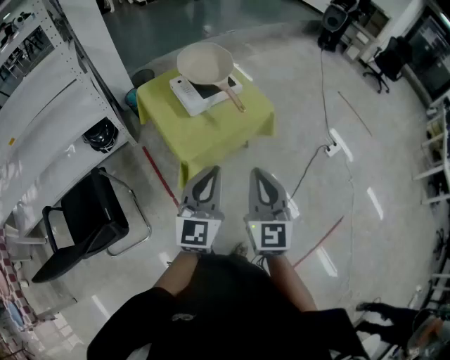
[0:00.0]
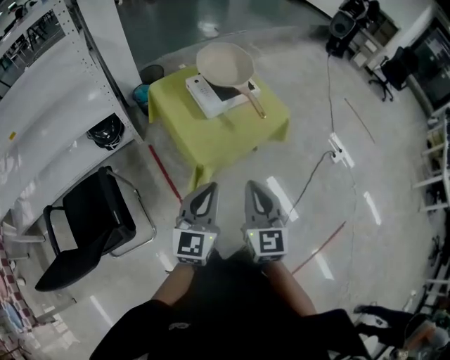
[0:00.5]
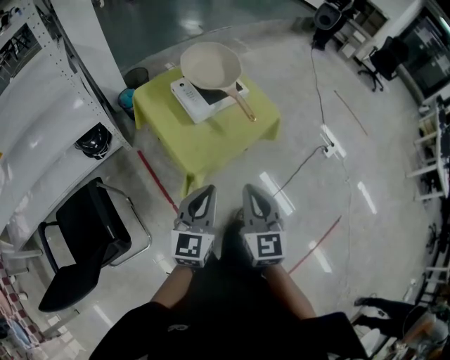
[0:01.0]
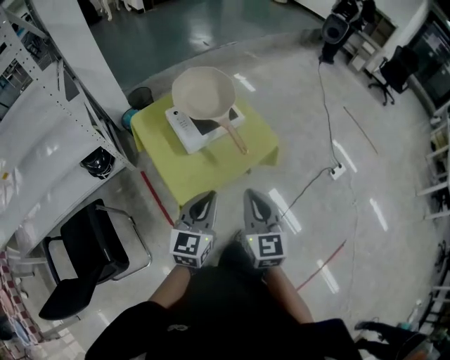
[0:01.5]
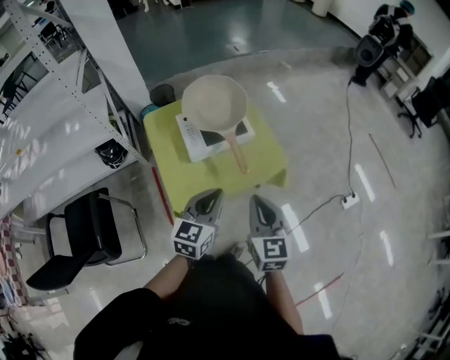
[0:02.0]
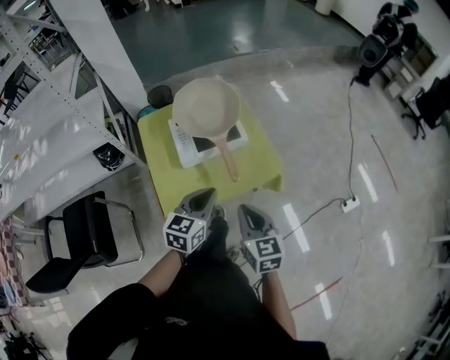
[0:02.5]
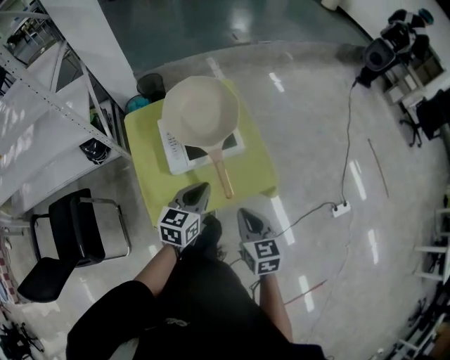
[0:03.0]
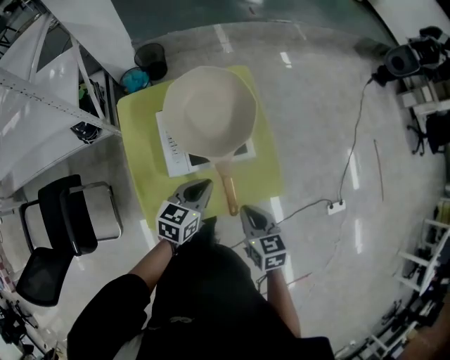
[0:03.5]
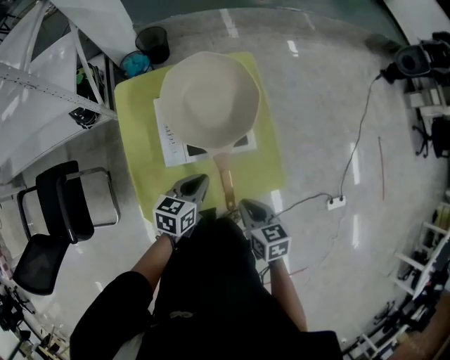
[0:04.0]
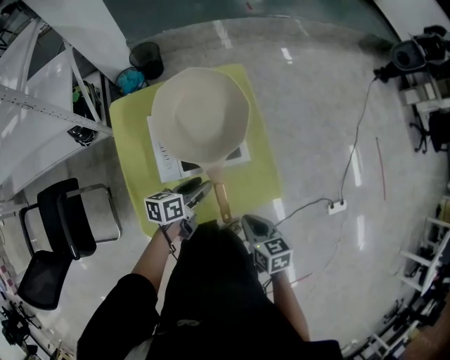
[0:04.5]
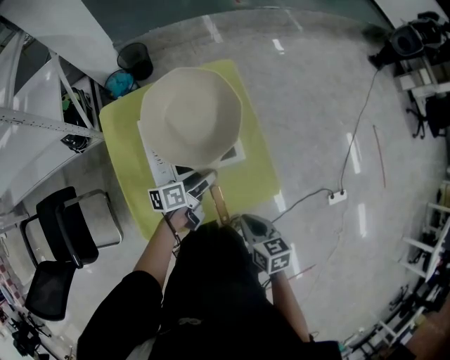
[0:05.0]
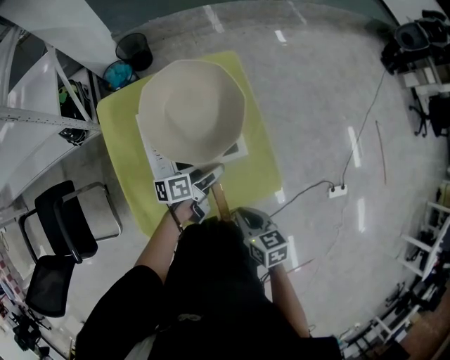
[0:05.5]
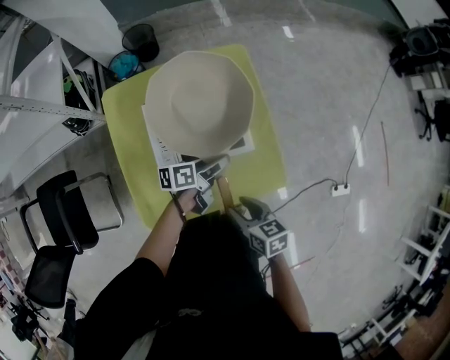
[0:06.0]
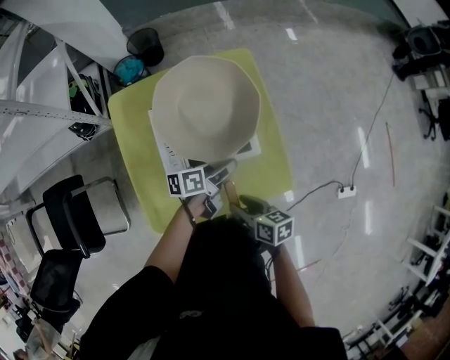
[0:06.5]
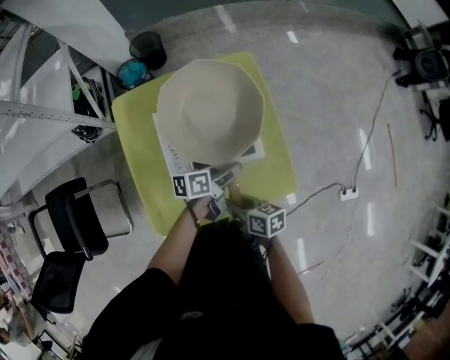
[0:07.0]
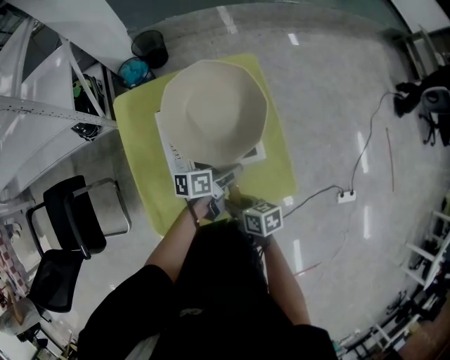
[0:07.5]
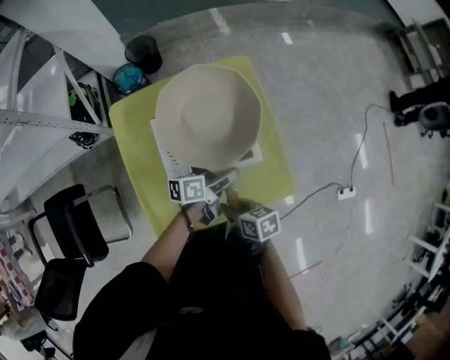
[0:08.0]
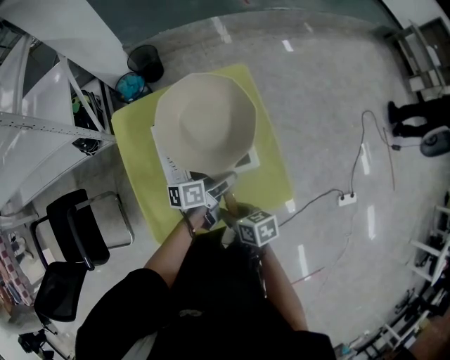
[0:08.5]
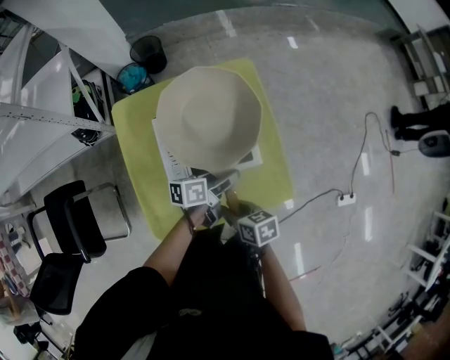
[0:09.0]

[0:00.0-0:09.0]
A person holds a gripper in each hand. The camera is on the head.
0.0 to 2.0 s: Both grippers move forward, approximately 25 cm. The right gripper turns by about 20 degrees.
2.0 to 4.5 s: The left gripper is displaced forward and downward by roughly 35 cm, rolls counterclockwise, seen from behind, by roughly 50 degrees, and opens its fingers, while the right gripper is displaced downward and forward by roughly 25 cm, and swivels roughly 40 degrees.
4.5 to 7.0 s: The right gripper moves to the left and downward, roughly 10 cm, changes its angle by roughly 20 degrees, and opens up, while the left gripper heads forward and to the right, covering some 10 cm.
7.0 to 9.0 s: The grippers make only small movements.

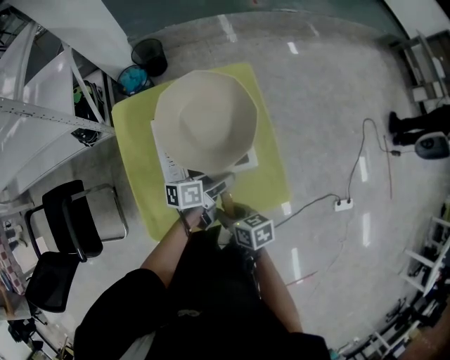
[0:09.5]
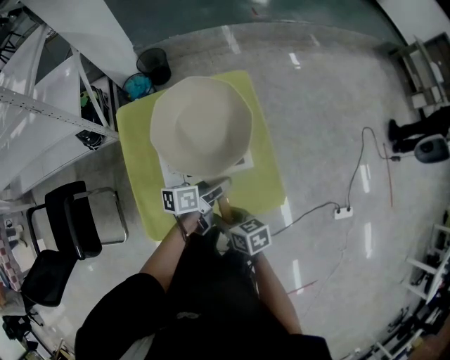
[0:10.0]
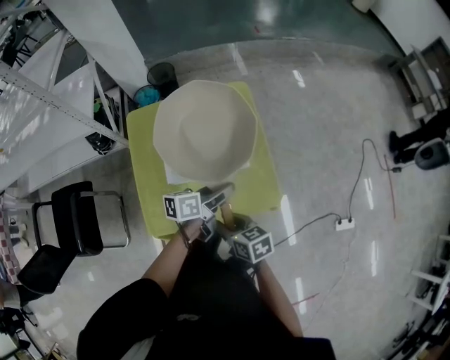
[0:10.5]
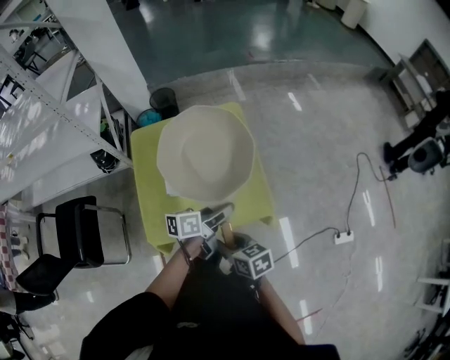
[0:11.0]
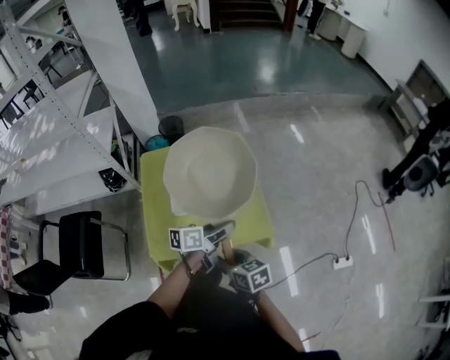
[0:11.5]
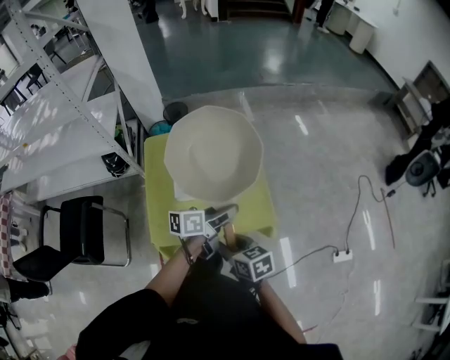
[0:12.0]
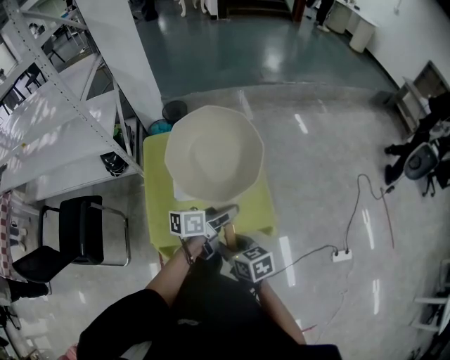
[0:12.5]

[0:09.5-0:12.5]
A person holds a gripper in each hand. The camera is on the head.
9.5 to 11.0 s: The grippers both shift backward and upward by about 15 cm.
11.0 to 12.5 s: The left gripper moves upward, approximately 5 cm.

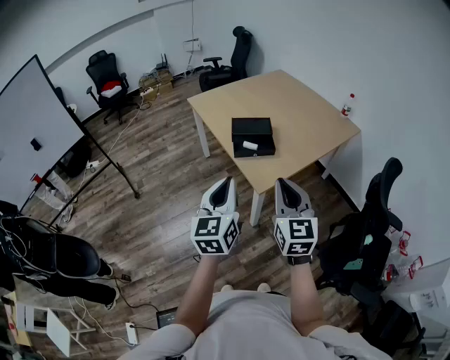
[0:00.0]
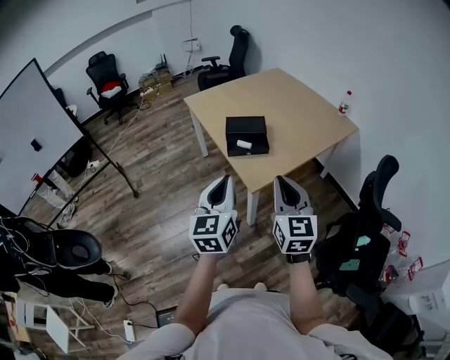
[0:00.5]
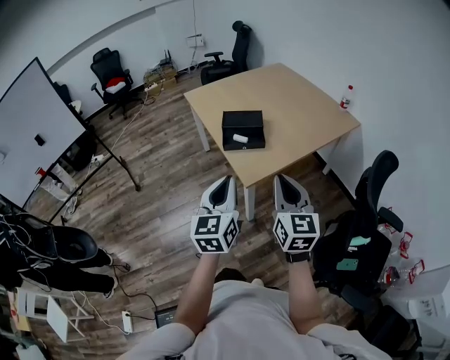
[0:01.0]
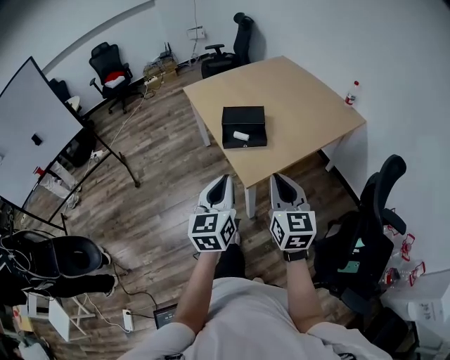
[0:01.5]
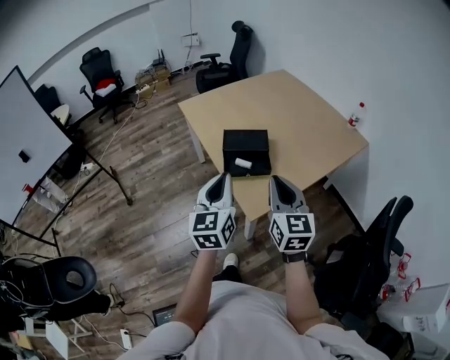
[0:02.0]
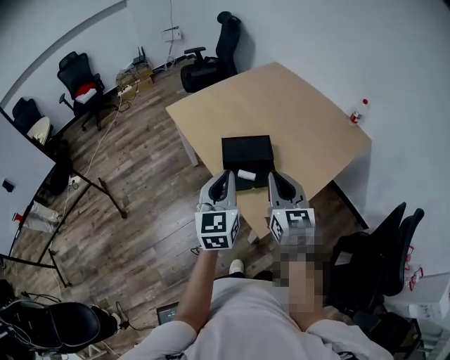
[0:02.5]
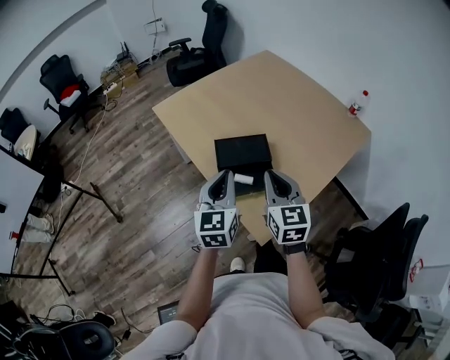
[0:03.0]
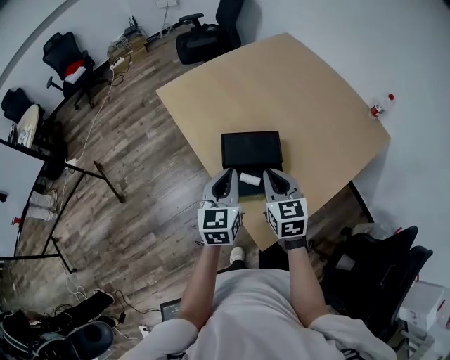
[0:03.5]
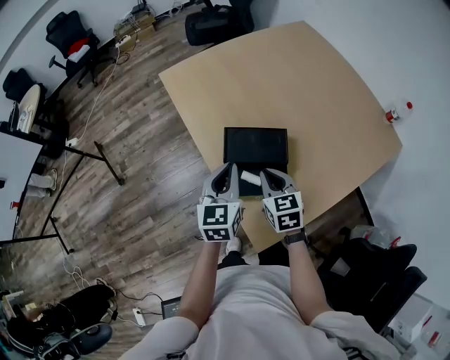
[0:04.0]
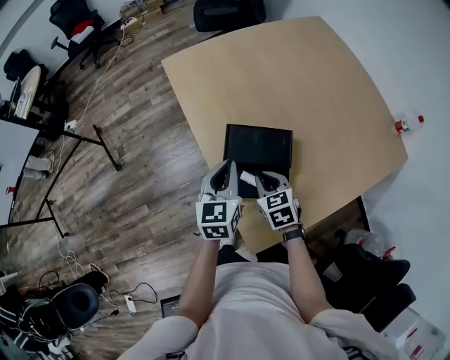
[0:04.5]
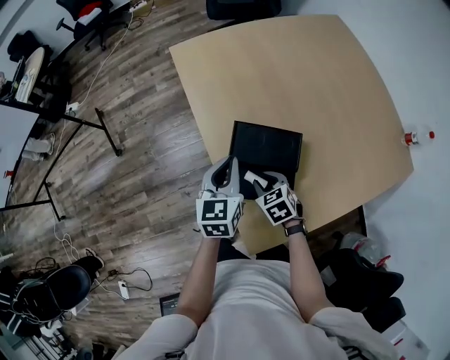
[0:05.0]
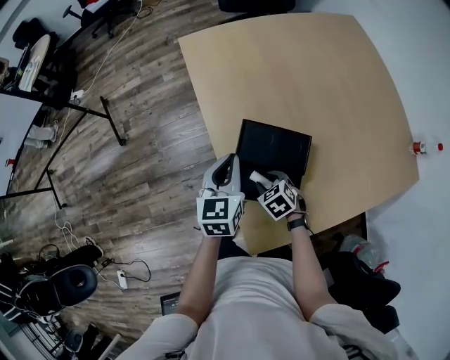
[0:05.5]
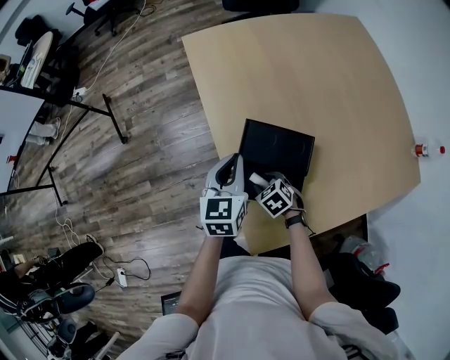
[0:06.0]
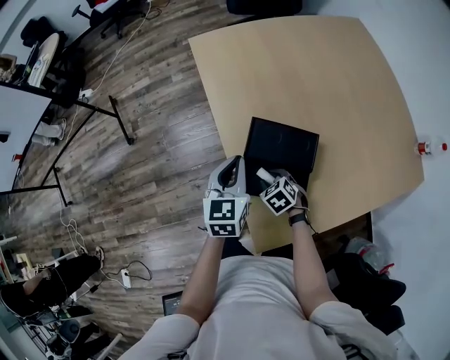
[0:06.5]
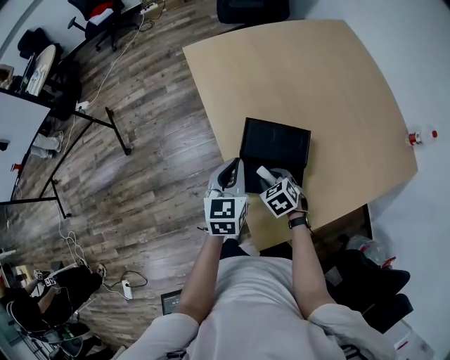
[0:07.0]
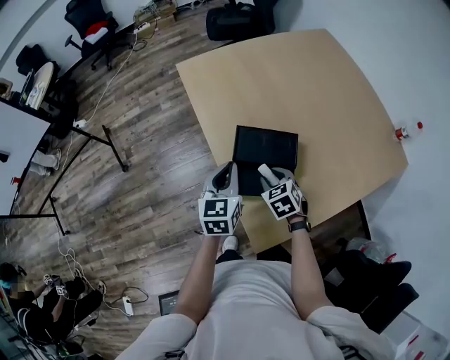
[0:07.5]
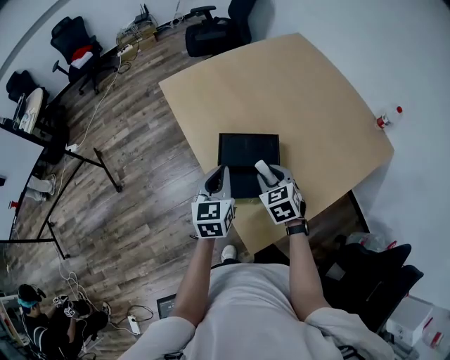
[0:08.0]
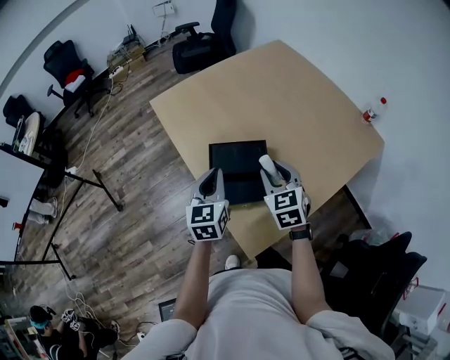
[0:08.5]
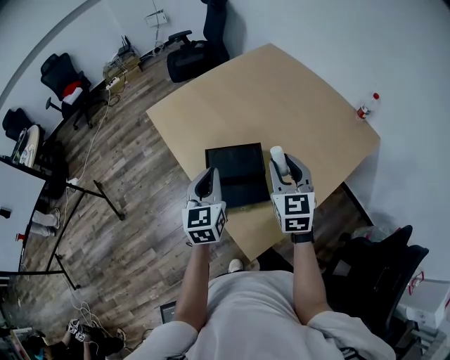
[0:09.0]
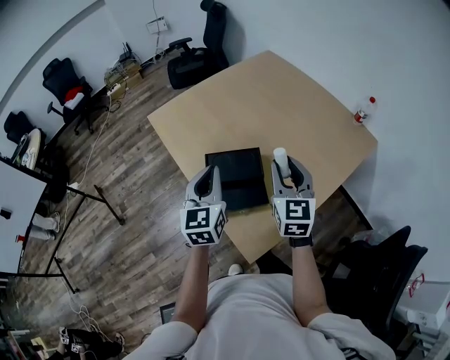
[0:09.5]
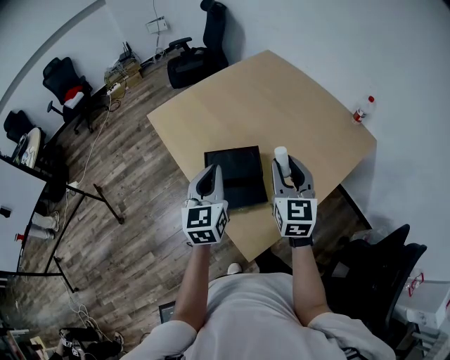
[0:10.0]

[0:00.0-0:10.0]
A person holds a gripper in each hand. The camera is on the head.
0.0 to 2.0 s: Both grippers travel together forward, roughly 20 cm.
2.0 to 4.0 s: Both grippers move forward and downward, about 35 cm. The right gripper turns by about 30 degrees.
4.0 to 6.0 s: The right gripper shifts approximately 20 cm downward, rotates approximately 50 degrees, and opens its fingers; the left gripper changes place by approximately 10 cm.
6.0 to 8.0 s: The left gripper ends up roughly 10 cm from where it was; the right gripper goes approximately 20 cm upward, and turns by some 40 degrees.
8.0 to 10.0 s: The right gripper moves upward and to the right, roughly 20 cm, and angles its fingers upward, by roughly 30 degrees. Meanwhile the left gripper is displaced upward by roughly 10 cm.

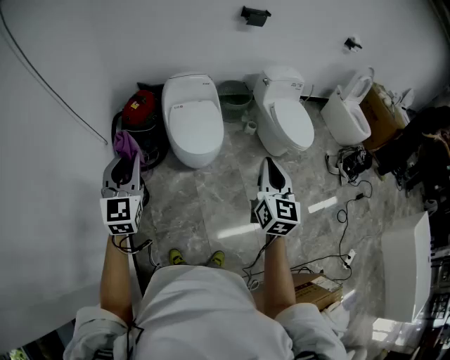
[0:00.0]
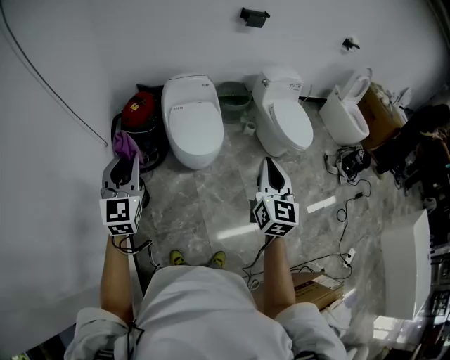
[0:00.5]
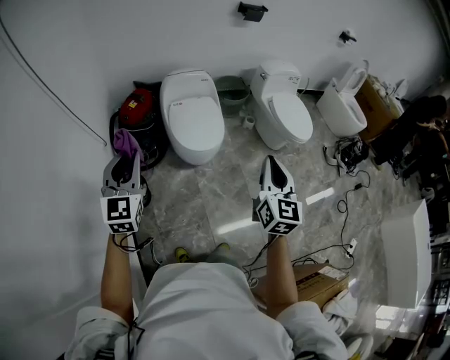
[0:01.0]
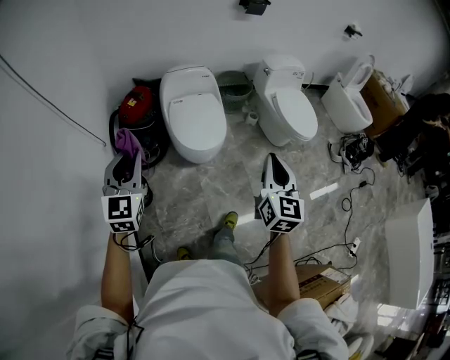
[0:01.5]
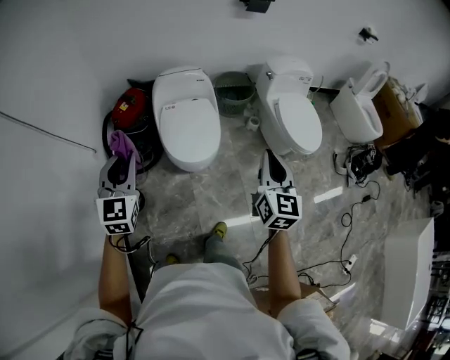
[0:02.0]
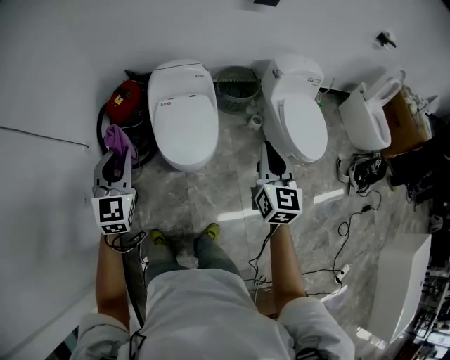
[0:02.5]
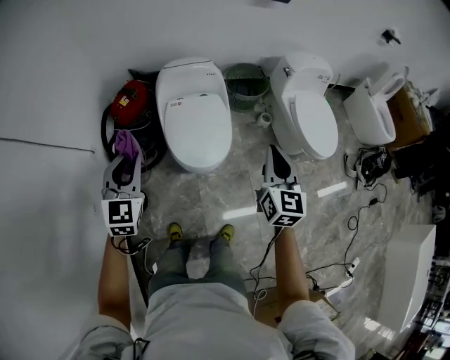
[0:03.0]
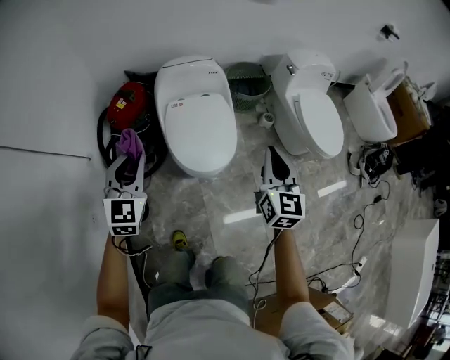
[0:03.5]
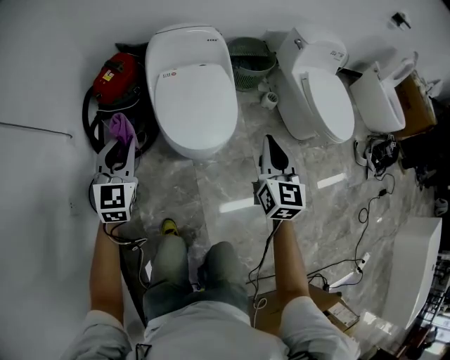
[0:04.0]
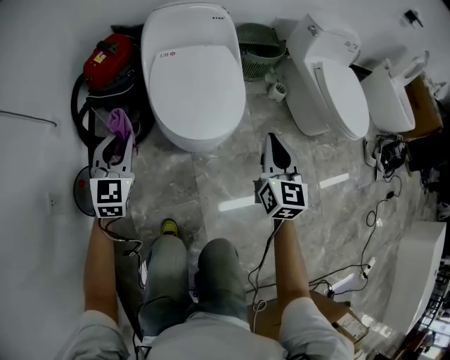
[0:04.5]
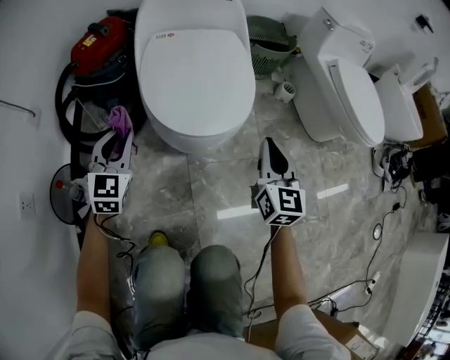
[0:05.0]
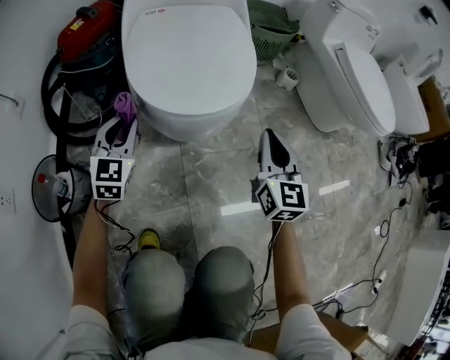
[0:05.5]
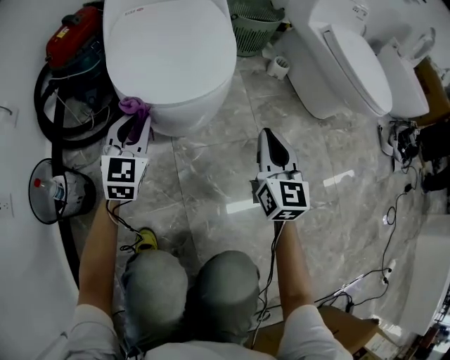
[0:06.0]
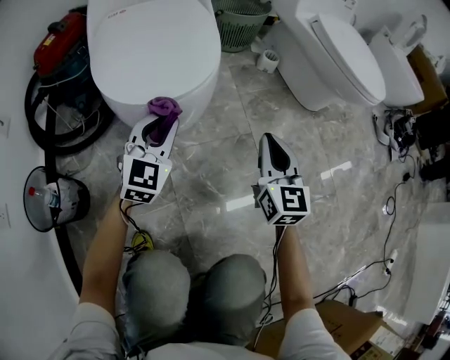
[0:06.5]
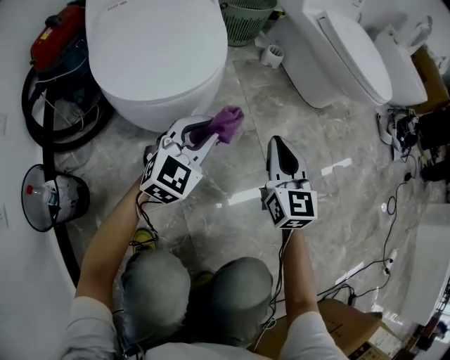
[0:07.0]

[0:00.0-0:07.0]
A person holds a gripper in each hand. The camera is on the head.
0.0 to 2.0 s: Both grippers travel together forward, about 20 cm.
2.0 to 3.5 s: The left gripper is displaced downward and forward by approximately 20 cm. The right gripper moves forward, downward and to the left, about 20 cm.
3.5 to 5.0 s: Both grippers move downward, about 40 cm.
5.0 to 7.0 s: The right gripper shifts about 15 cm downward and to the right, while the left gripper moves to the right, about 30 cm, and rotates roughly 40 degrees.
